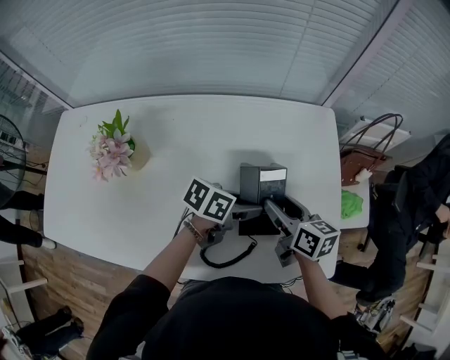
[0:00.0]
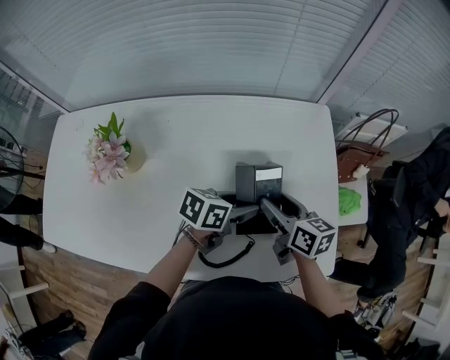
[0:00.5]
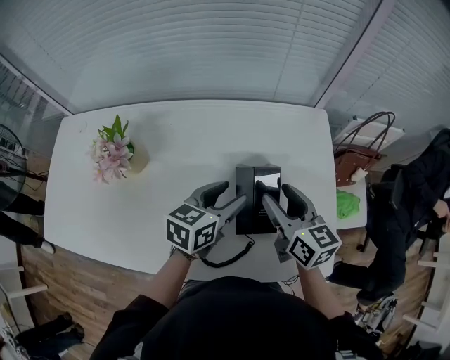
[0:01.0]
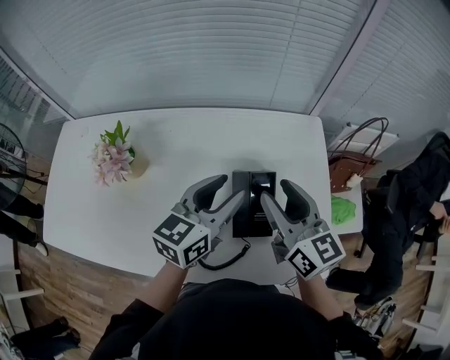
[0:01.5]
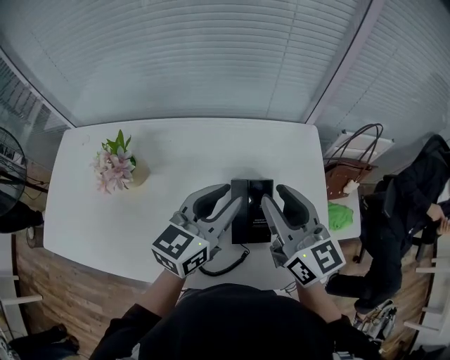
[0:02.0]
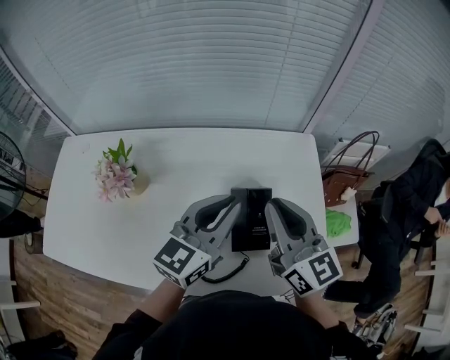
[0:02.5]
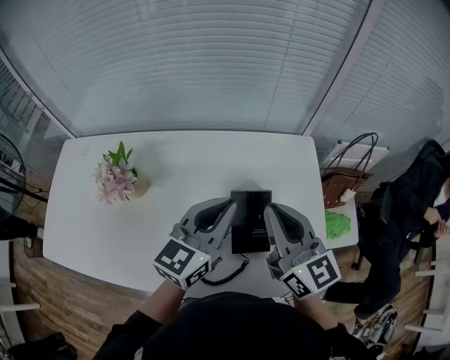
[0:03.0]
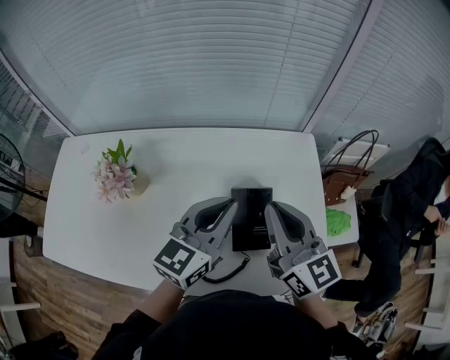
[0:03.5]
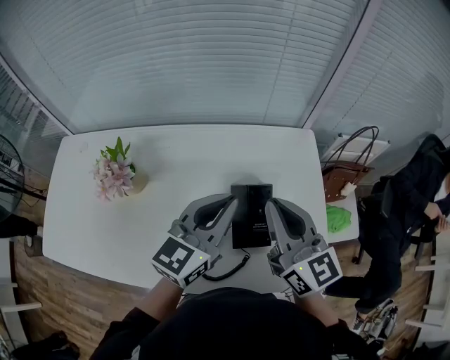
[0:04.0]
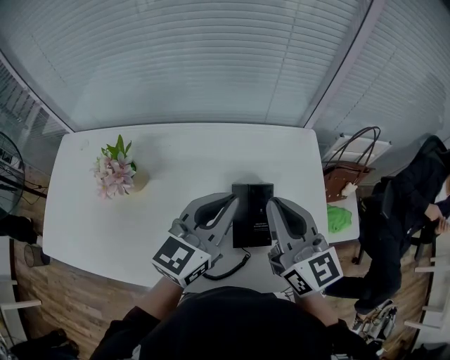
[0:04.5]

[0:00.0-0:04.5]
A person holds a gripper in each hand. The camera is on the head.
0:00.0 to 0:02.0: Both grippers travel together upward, some 20 cm. The right gripper swivels some 40 degrees; the left gripper swivels some 50 degrees.
0:02.0 to 0:04.5: The right gripper closes; the left gripper closes up.

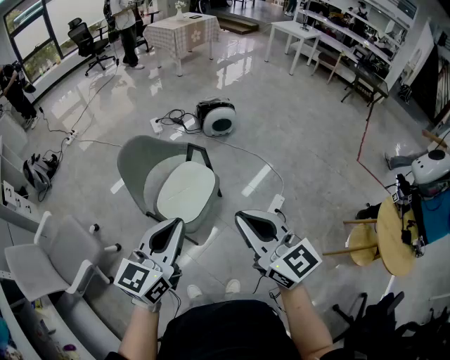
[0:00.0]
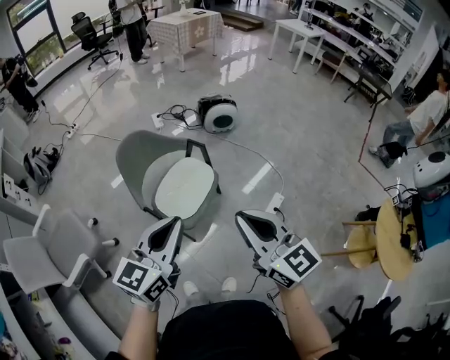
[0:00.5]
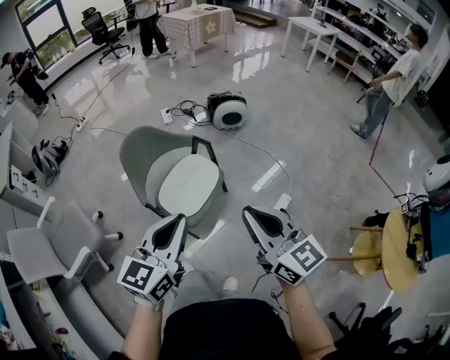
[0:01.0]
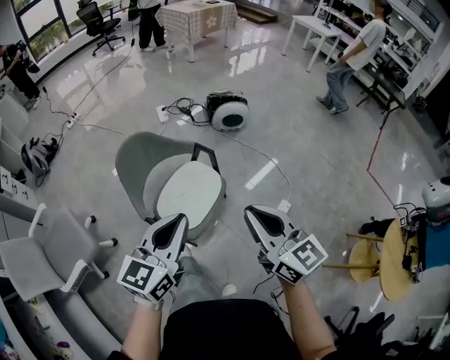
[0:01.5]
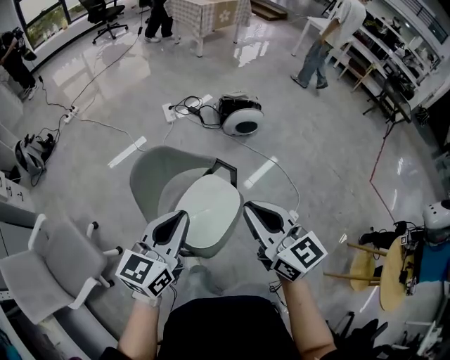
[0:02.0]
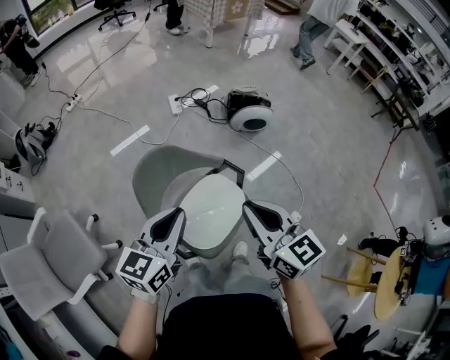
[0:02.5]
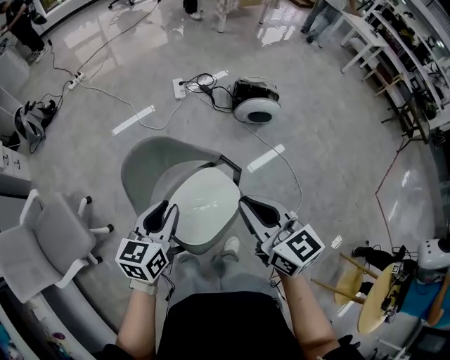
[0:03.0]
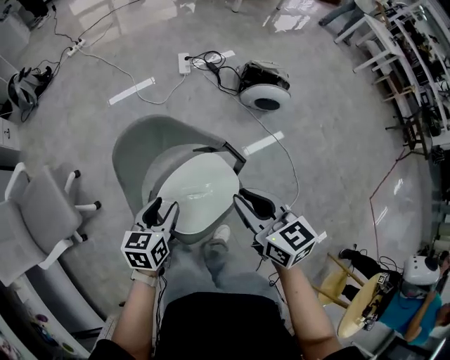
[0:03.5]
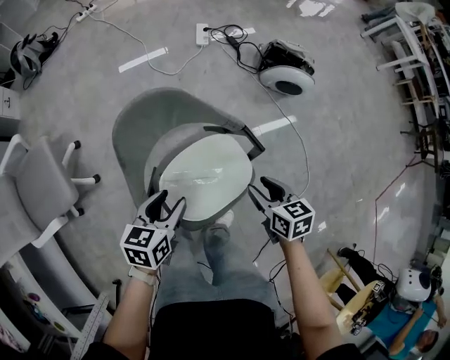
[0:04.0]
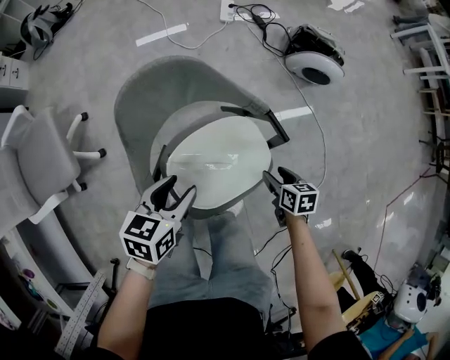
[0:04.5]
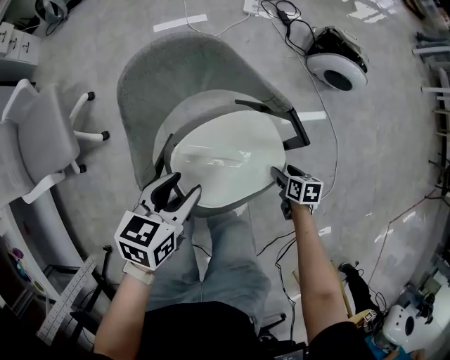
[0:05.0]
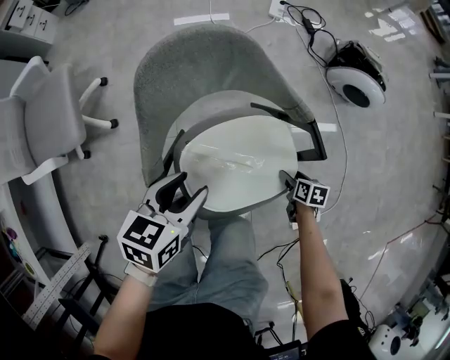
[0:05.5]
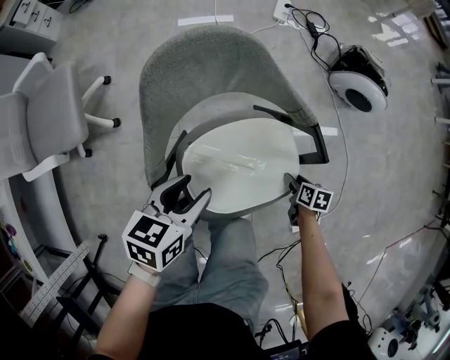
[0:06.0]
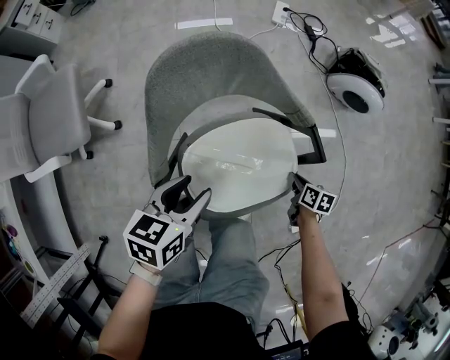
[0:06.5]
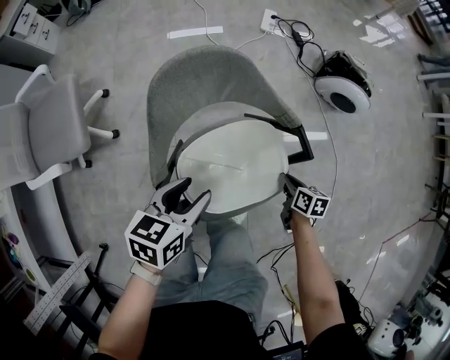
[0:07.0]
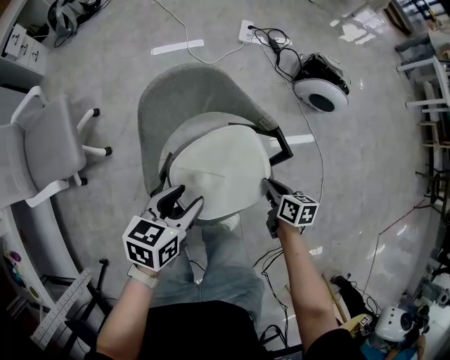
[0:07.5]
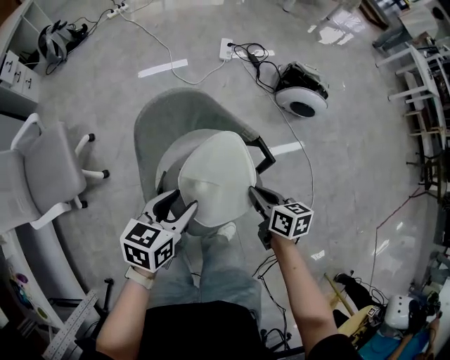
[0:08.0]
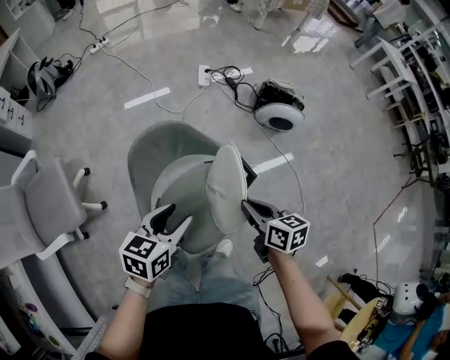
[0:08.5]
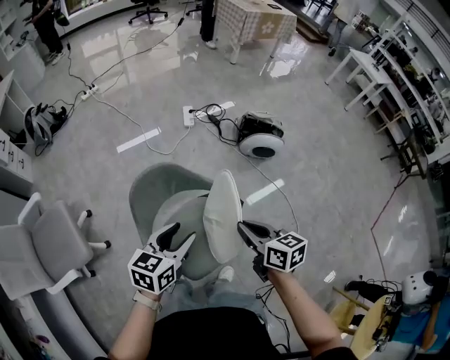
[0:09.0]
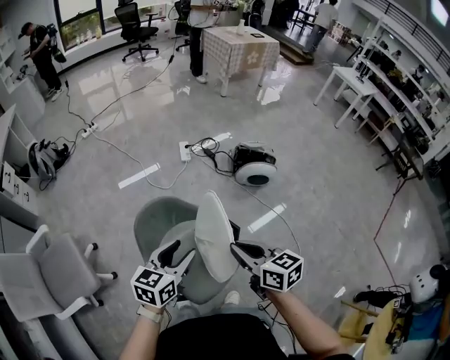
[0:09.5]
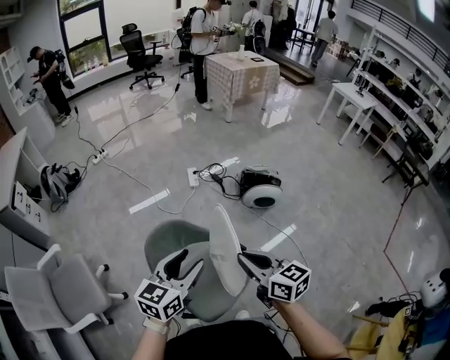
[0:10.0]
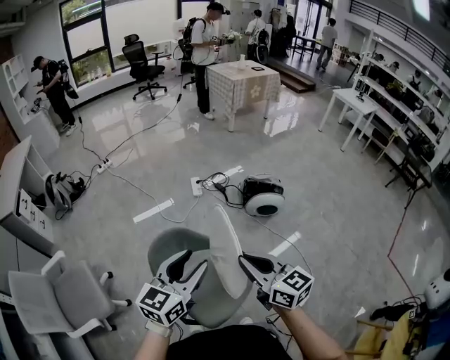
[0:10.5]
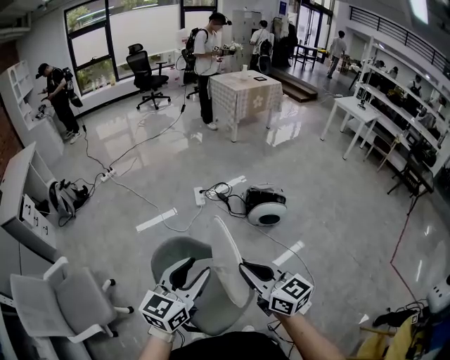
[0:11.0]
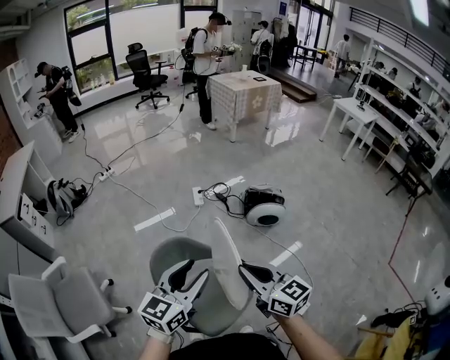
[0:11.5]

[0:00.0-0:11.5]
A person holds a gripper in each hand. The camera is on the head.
0:00.0 to 0:02.0: The left gripper goes about 25 cm forward and to the left; the right gripper goes about 25 cm forward.
0:02.0 to 0:04.0: Both grippers travel together downward, about 30 cm. The left gripper rotates approximately 40 degrees, and opens; the right gripper tips its fingers downward by approximately 40 degrees, and opens its fingers.
0:04.0 to 0:06.0: The right gripper shifts some 30 cm downward, and turns by some 20 degrees. Meanwhile the left gripper goes some 5 cm downward.
0:06.0 to 0:07.5: The left gripper heads upward, covering some 5 cm; the right gripper moves upward and to the left, approximately 20 cm, and closes.
0:07.5 to 0:09.5: The right gripper moves upward, about 35 cm, and turns by some 30 degrees, while the left gripper travels upward by about 20 cm, and changes its angle by roughly 30 degrees.
0:09.5 to 0:11.5: The left gripper is displaced upward by roughly 15 cm, and rotates some 20 degrees; the right gripper heads upward, covering some 10 cm, and swivels roughly 20 degrees.

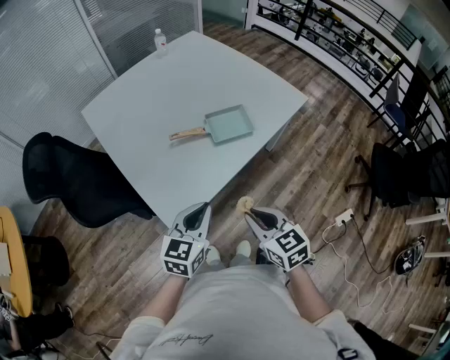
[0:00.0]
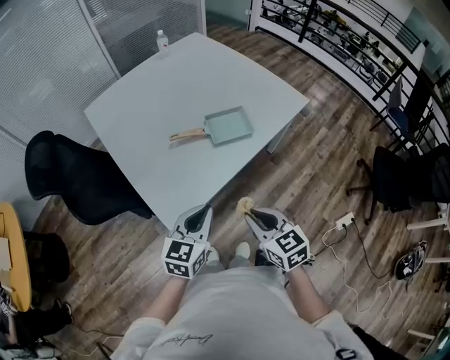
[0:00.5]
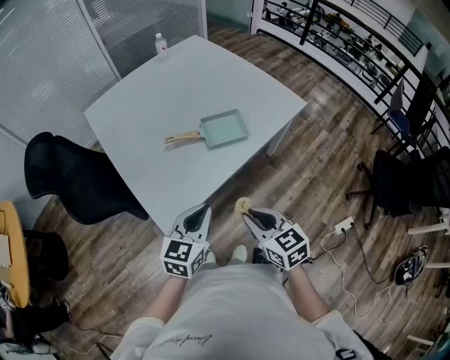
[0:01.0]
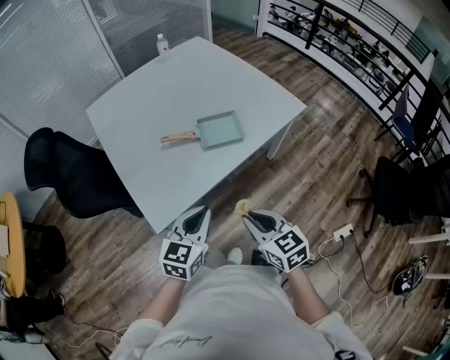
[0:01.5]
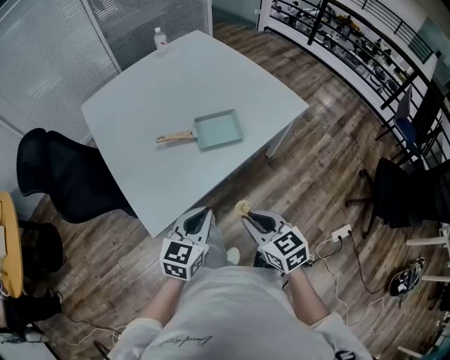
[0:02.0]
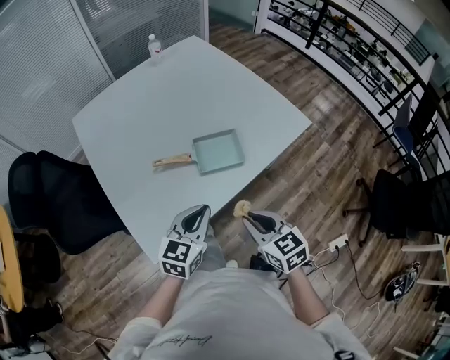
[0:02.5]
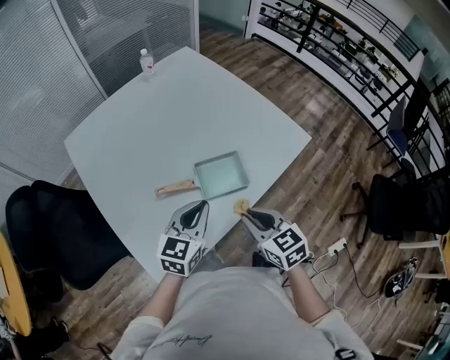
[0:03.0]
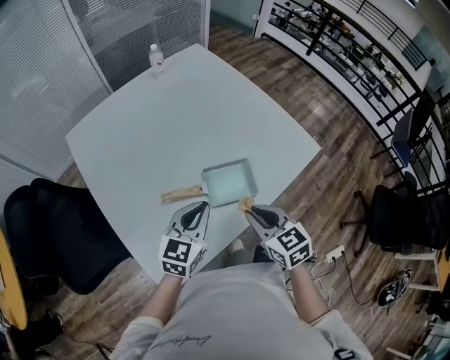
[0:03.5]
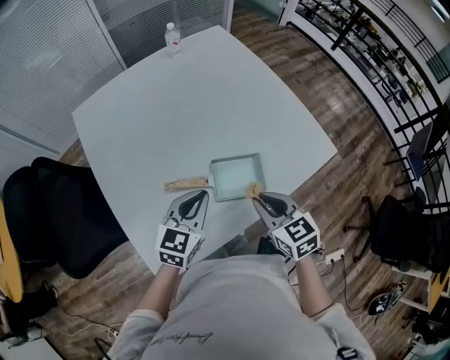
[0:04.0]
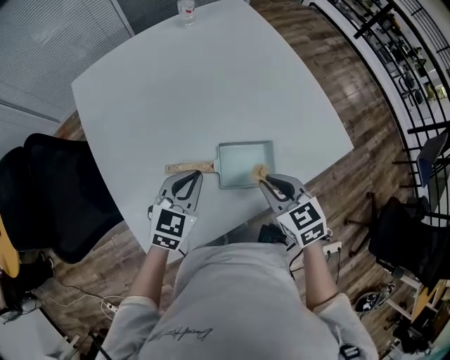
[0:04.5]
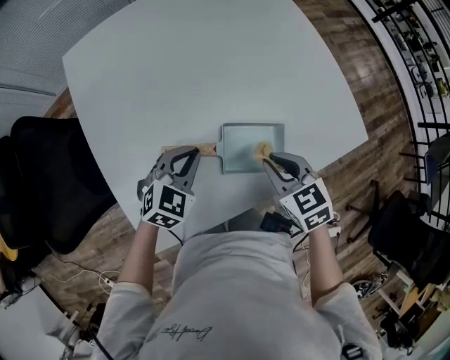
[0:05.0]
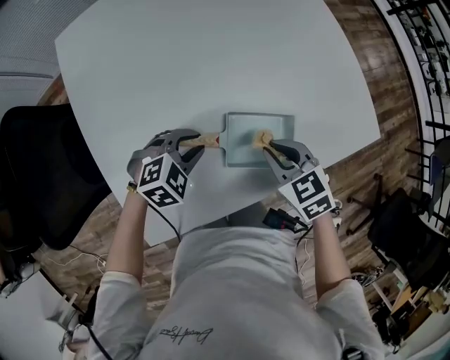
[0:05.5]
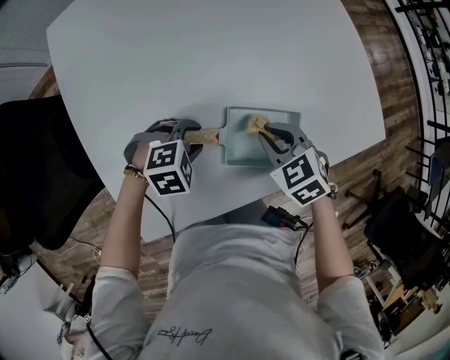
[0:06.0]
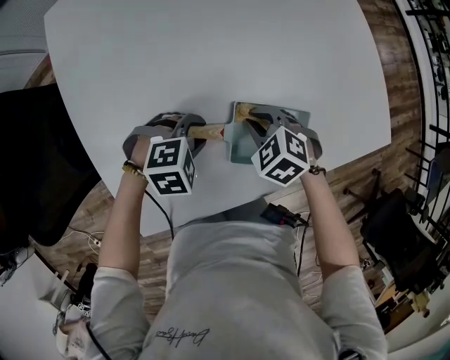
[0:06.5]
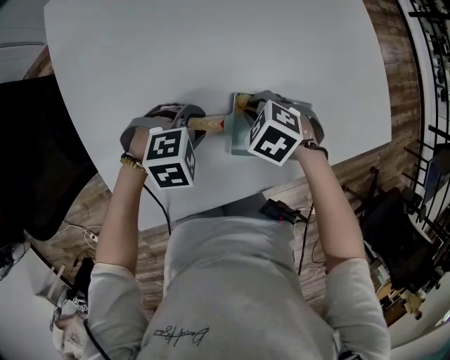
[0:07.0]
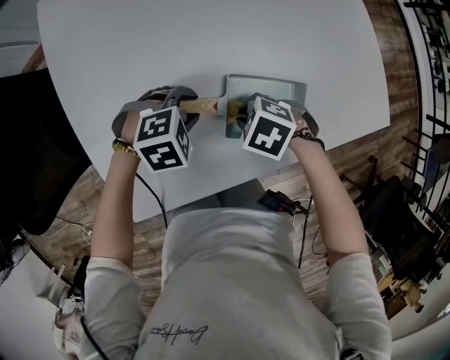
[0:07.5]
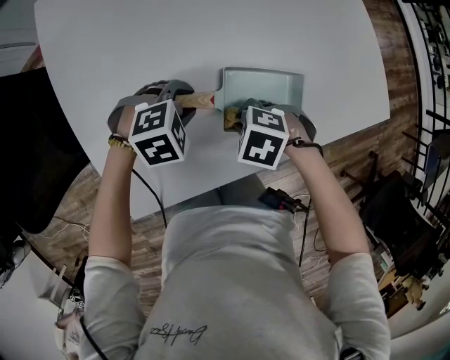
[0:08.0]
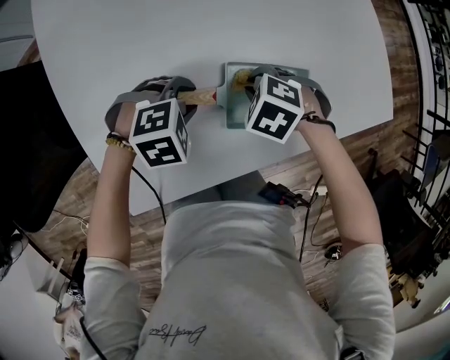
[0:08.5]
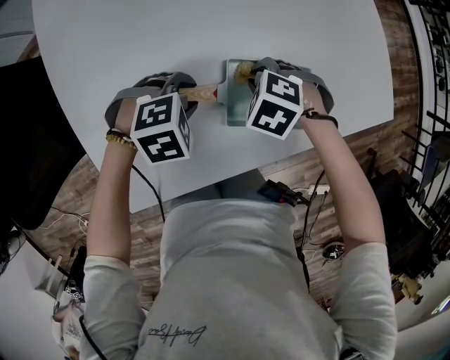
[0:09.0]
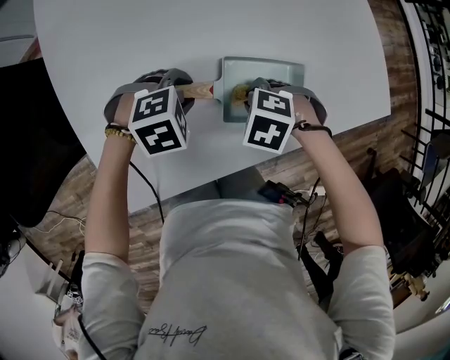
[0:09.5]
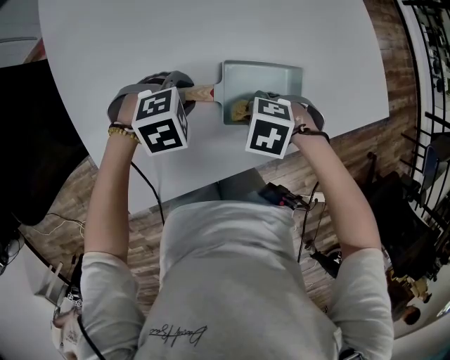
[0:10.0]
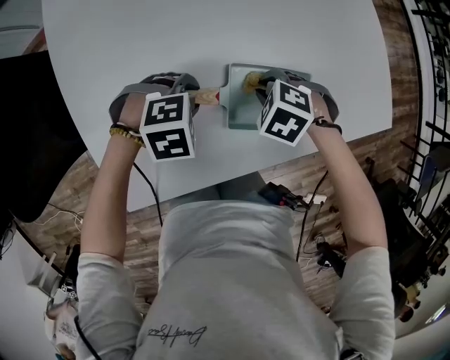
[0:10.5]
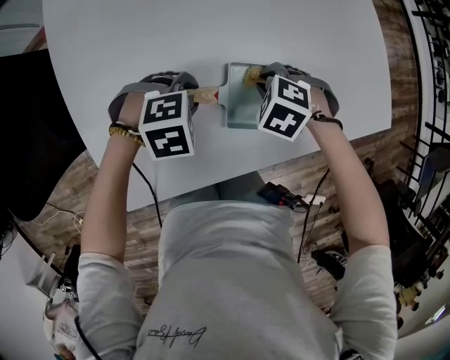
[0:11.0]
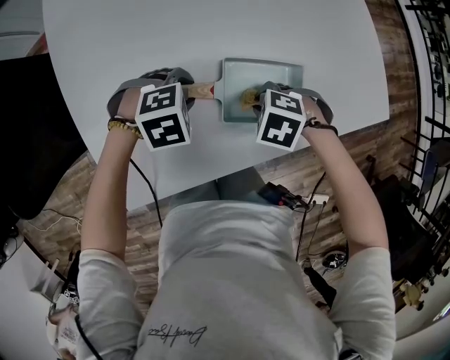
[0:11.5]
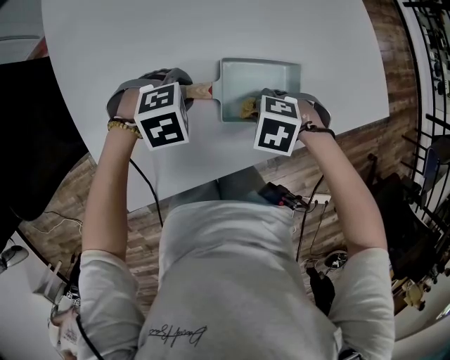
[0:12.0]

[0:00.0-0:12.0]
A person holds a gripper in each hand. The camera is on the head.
0:00.0 to 0:02.0: Both grippers travel together to the right, approximately 10 cm.
0:02.0 to 0:04.0: Both grippers travel together forward, roughly 25 cm.
0:04.0 to 0:06.0: The two grippers go about 15 cm downward. The left gripper tips its fingers downward by about 40 degrees, and opens its fingers, while the right gripper changes its angle by some 30 degrees.
0:06.0 to 0:08.0: The right gripper shifts by about 10 cm, and rotates approximately 40 degrees.
